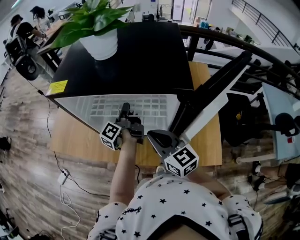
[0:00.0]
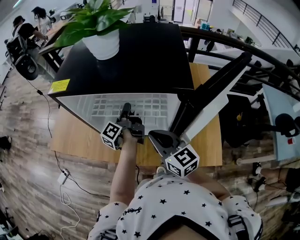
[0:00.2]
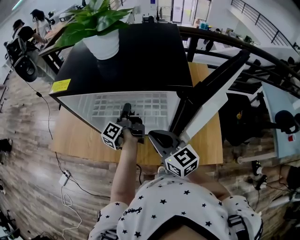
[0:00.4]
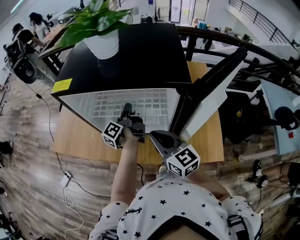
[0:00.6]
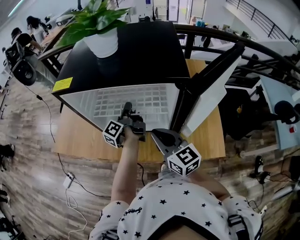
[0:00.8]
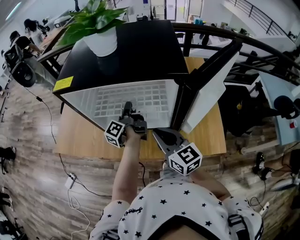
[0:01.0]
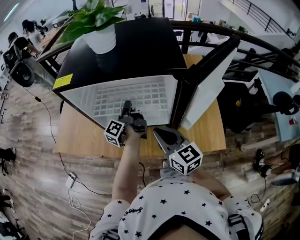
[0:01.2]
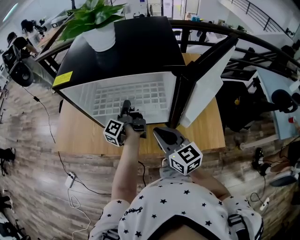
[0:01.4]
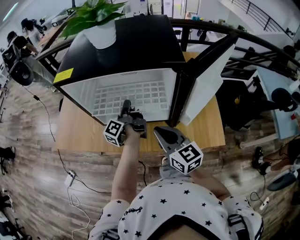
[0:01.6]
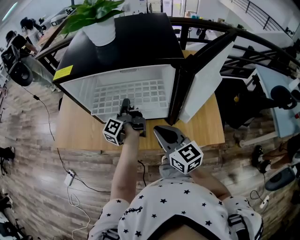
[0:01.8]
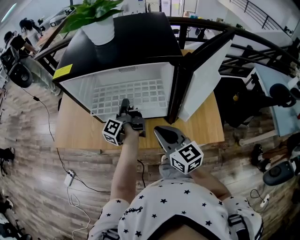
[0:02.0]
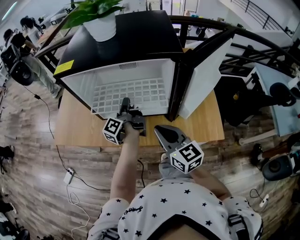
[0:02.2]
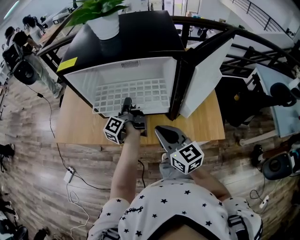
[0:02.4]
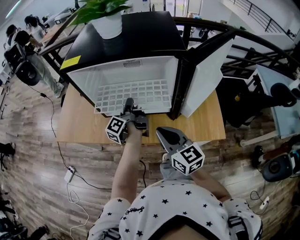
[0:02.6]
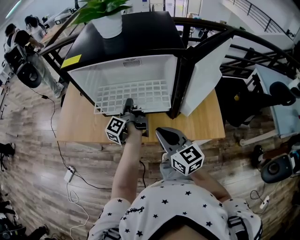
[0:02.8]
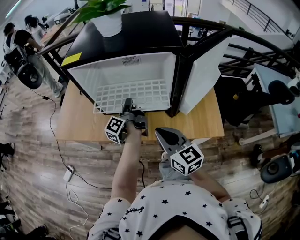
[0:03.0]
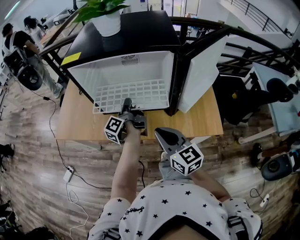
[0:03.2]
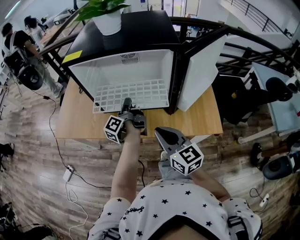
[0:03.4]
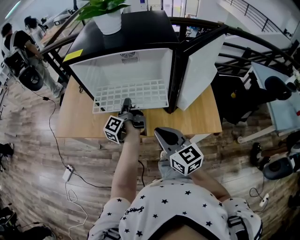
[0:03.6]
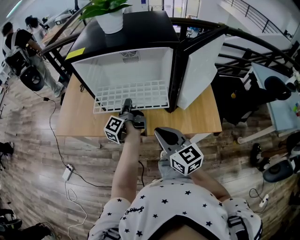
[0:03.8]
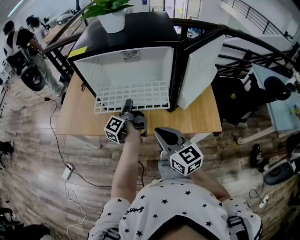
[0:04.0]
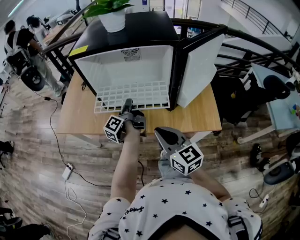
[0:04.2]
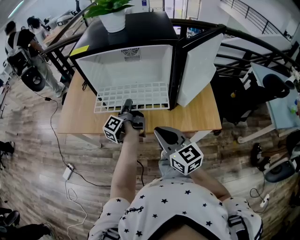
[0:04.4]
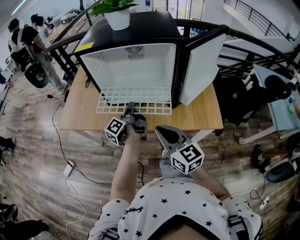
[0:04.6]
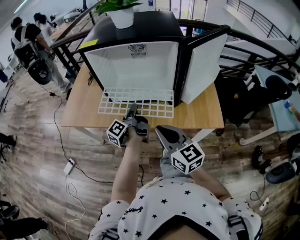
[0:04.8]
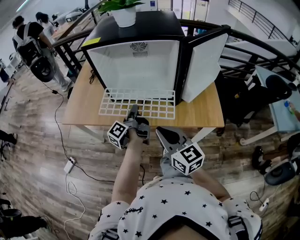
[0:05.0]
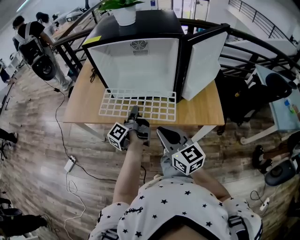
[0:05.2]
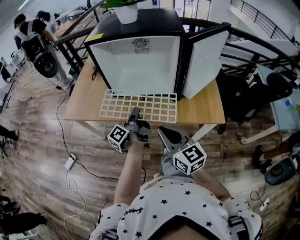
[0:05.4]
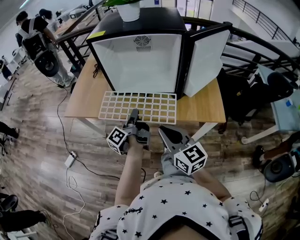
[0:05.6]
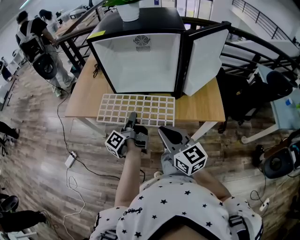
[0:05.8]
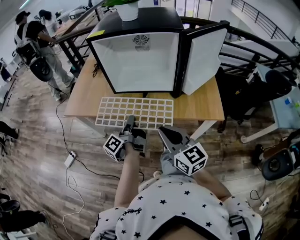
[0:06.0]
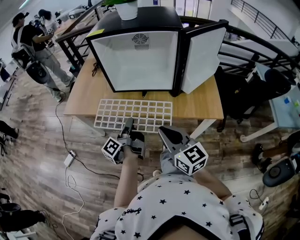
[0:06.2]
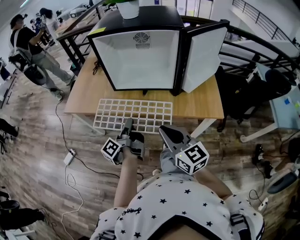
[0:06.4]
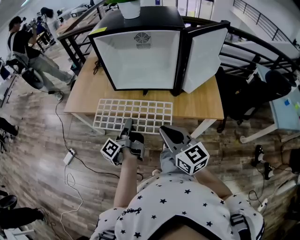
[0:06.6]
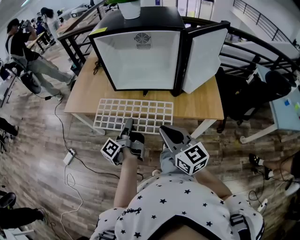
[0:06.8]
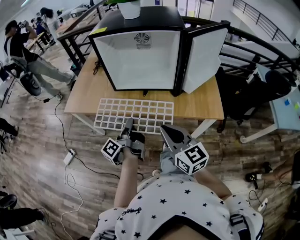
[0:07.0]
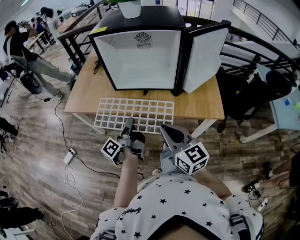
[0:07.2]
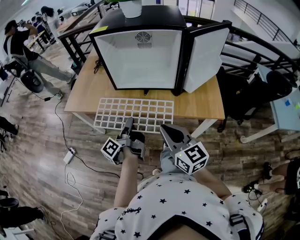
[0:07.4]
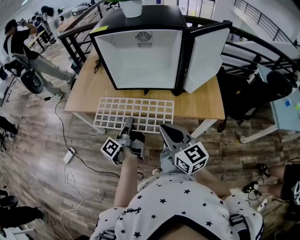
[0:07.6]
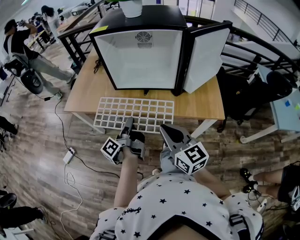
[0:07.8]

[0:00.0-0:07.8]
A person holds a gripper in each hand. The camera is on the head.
0:00.0 to 0:01.6: The left gripper changes place by approximately 5 cm, while the right gripper shifts roughly 5 cm backward.
0:01.6 to 0:03.2: Both grippers travel together backward, some 5 cm.
0:03.2 to 0:04.6: The right gripper moves about 5 cm. Meanwhile the left gripper goes some 5 cm backward.
0:04.6 to 0:06.2: The left gripper heads backward and to the left, covering some 15 cm; the right gripper heads backward, covering approximately 10 cm.
0:06.2 to 0:07.8: Both grippers stay put.

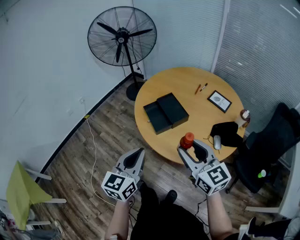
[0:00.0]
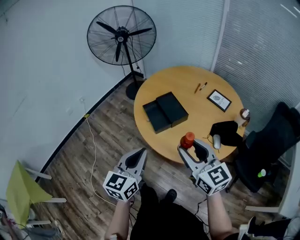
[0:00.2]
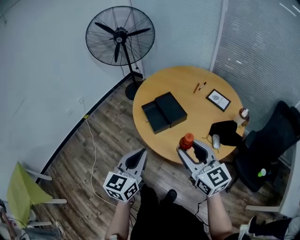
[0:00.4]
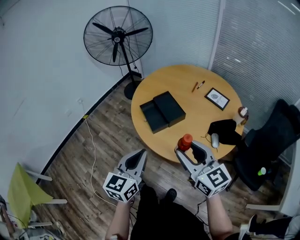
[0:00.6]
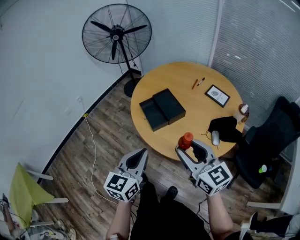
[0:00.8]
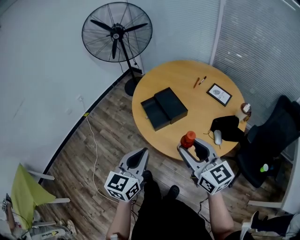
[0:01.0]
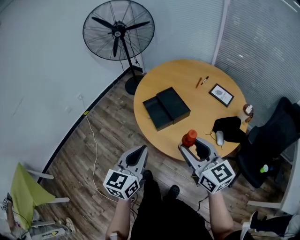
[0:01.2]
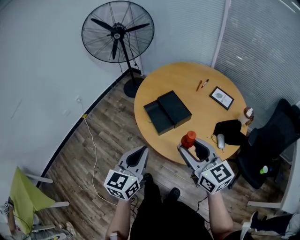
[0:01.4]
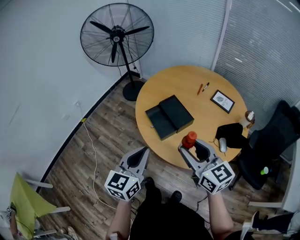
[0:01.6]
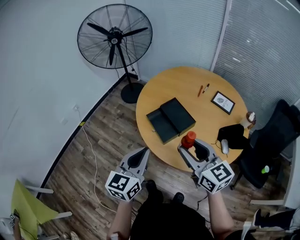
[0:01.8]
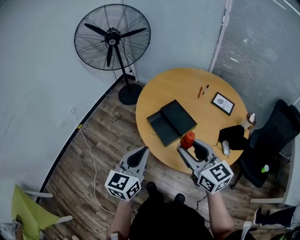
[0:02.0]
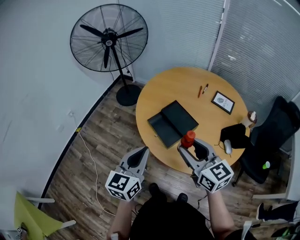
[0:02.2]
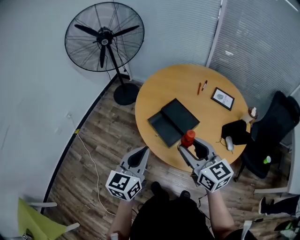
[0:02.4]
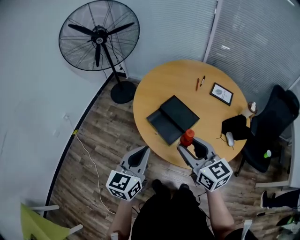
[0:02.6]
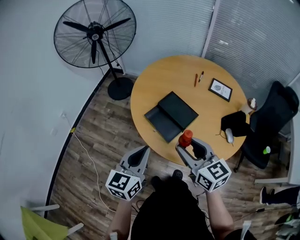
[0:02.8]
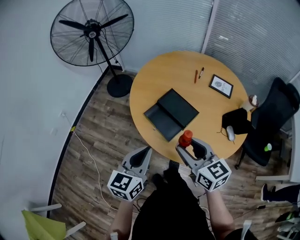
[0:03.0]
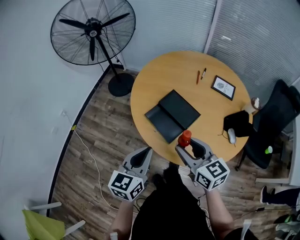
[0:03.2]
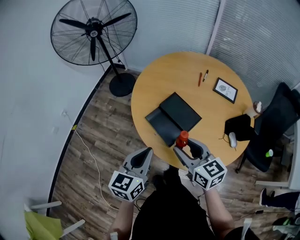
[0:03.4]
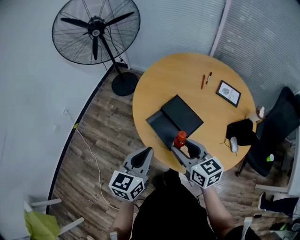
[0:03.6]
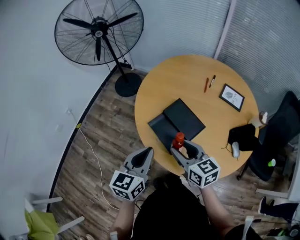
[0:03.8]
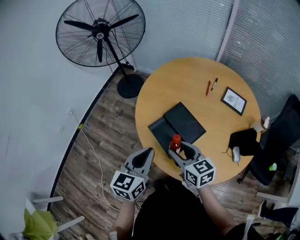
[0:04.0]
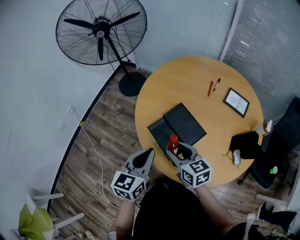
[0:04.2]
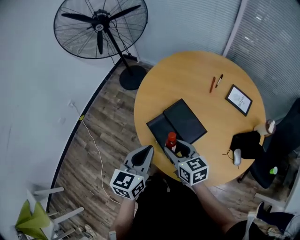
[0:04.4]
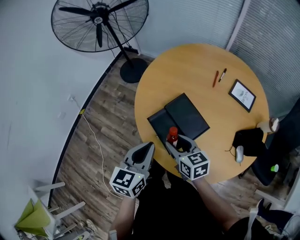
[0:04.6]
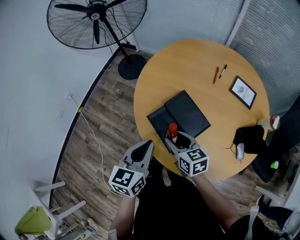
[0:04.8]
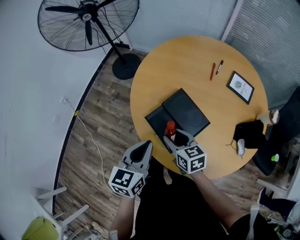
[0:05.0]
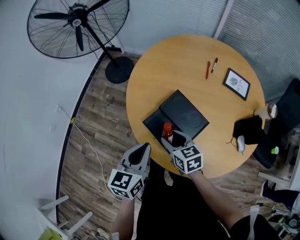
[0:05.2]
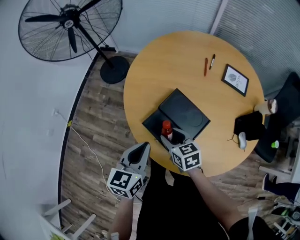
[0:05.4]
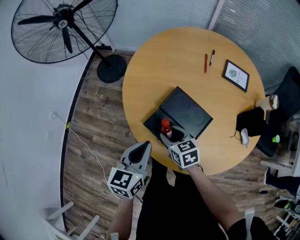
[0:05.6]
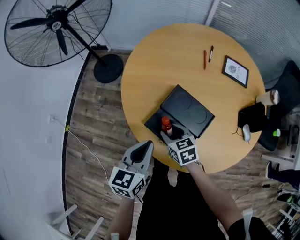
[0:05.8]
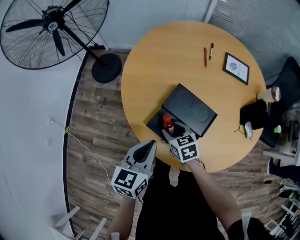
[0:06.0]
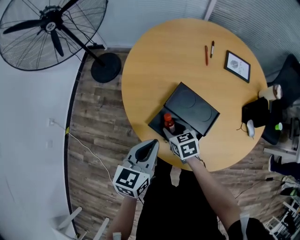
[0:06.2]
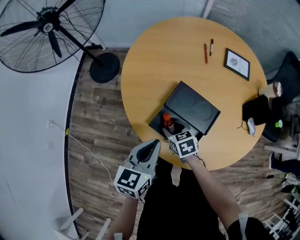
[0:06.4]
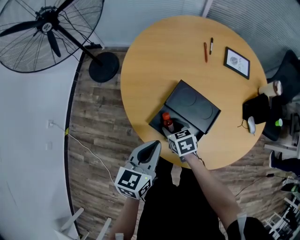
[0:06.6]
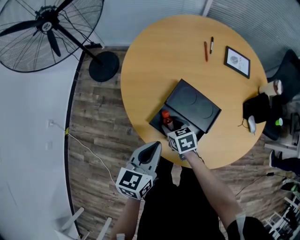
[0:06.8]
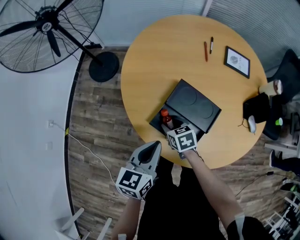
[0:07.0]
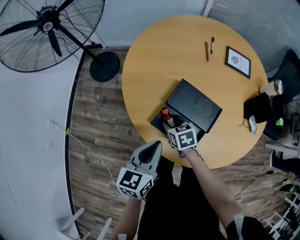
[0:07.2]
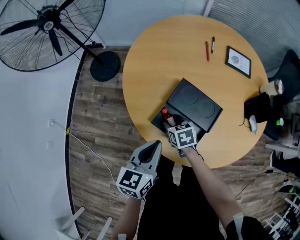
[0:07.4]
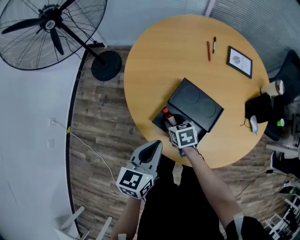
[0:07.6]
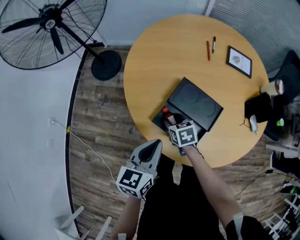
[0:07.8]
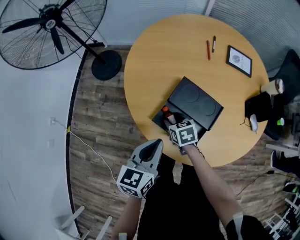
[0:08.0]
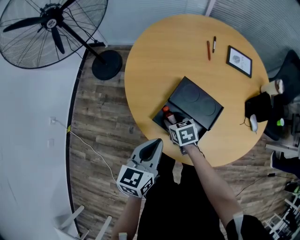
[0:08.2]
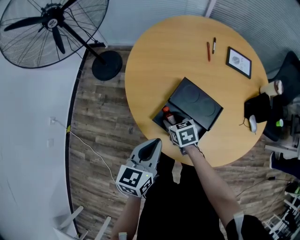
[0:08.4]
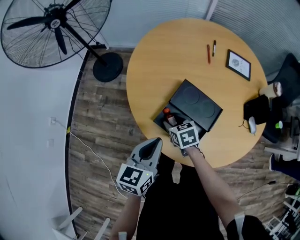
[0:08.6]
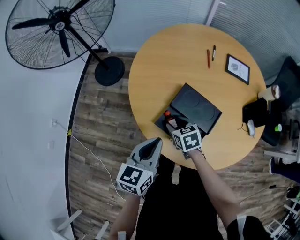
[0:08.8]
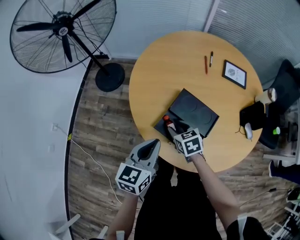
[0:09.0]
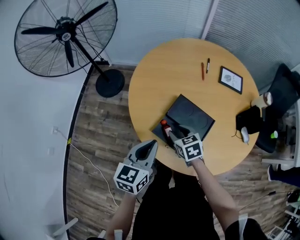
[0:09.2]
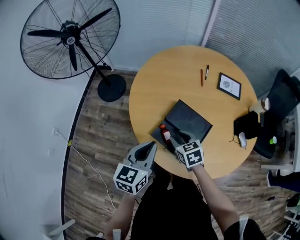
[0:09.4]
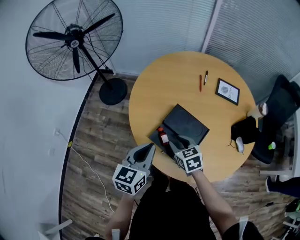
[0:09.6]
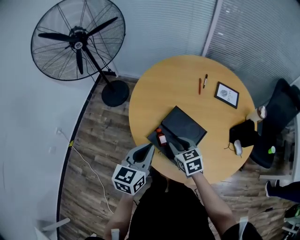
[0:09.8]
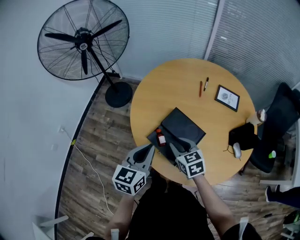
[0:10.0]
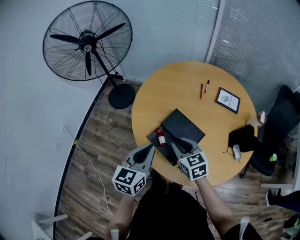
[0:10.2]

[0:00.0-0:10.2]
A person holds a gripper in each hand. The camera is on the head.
0:00.0 to 0:01.4: The grippers stay close to where they were, moving slightly.
0:01.4 to 0:03.0: The left gripper heads forward and to the left, covering some 15 cm, while the right gripper goes roughly 15 cm forward, to the left and downward.
0:03.0 to 0:04.4: The left gripper goes approximately 10 cm forward. Meanwhile the right gripper moves forward and downward, approximately 20 cm.
0:04.4 to 0:05.8: The right gripper moves downward and forward, about 15 cm, and swivels about 20 degrees. The left gripper heads downward and forward, covering some 10 cm.
0:05.8 to 0:07.2: The right gripper is displaced downward by about 5 cm.
0:07.2 to 0:08.8: There are only small adjustments of the grippers.
0:08.8 to 0:10.2: The right gripper is displaced upward and to the right by about 20 cm, changes its angle by approximately 20 degrees, and closes, while the left gripper goes some 10 cm upward.

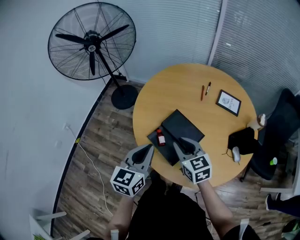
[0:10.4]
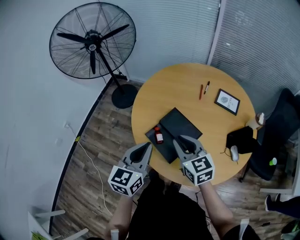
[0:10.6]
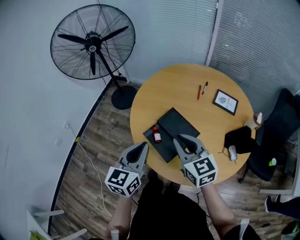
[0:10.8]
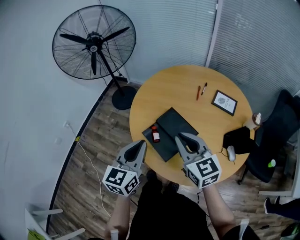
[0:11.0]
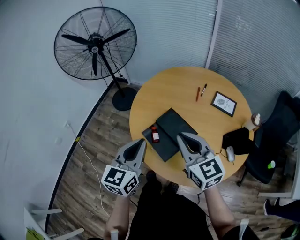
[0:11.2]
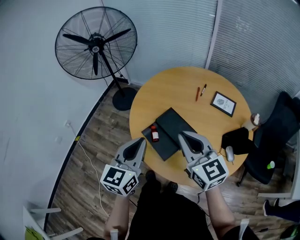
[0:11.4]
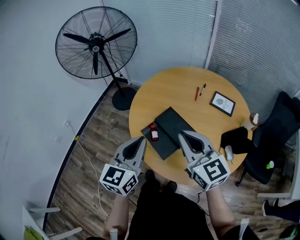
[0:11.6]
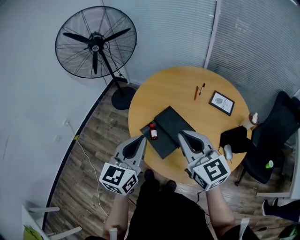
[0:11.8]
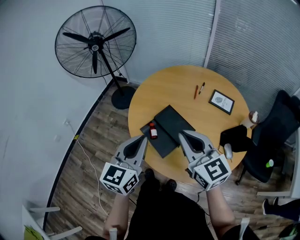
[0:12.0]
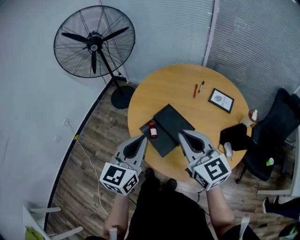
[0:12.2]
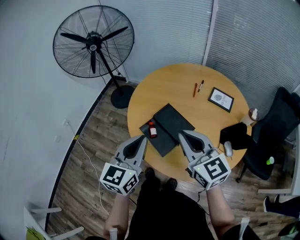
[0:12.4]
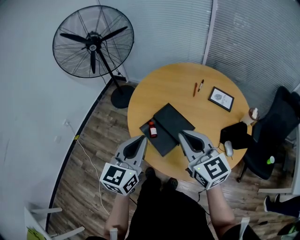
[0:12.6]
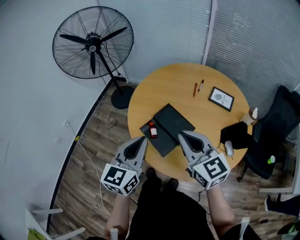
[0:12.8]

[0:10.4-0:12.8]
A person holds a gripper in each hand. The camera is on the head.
0:10.4 to 0:11.6: The left gripper travels upward by roughly 5 cm. Meanwhile the right gripper travels upward and backward by some 15 cm, and changes its angle by some 20 degrees.
0:11.6 to 0:12.8: The grippers move only a little.

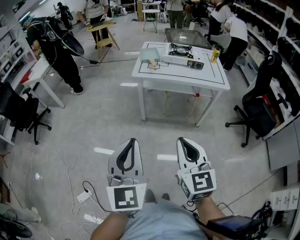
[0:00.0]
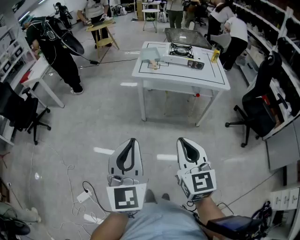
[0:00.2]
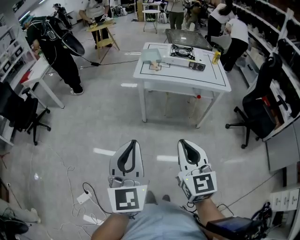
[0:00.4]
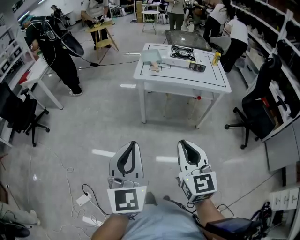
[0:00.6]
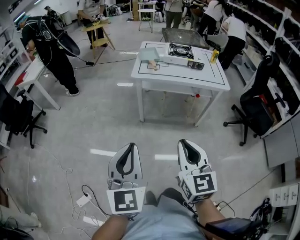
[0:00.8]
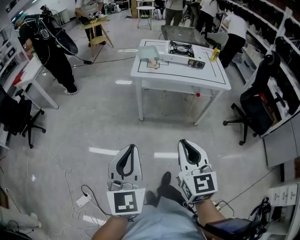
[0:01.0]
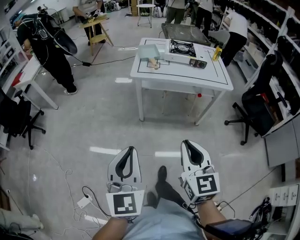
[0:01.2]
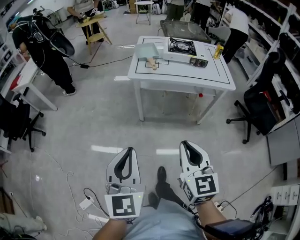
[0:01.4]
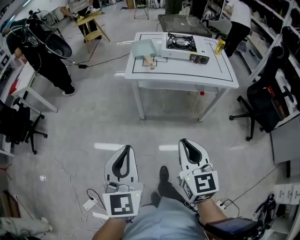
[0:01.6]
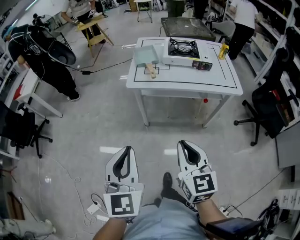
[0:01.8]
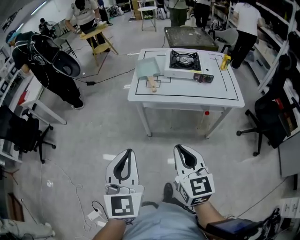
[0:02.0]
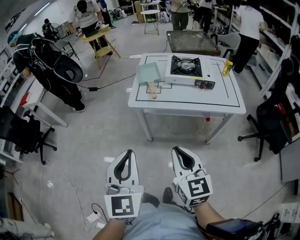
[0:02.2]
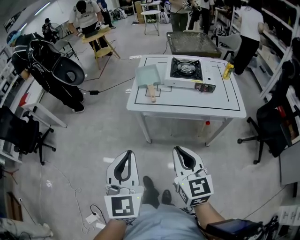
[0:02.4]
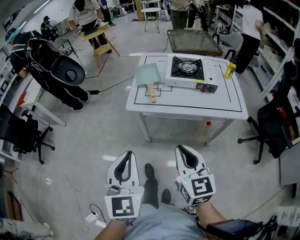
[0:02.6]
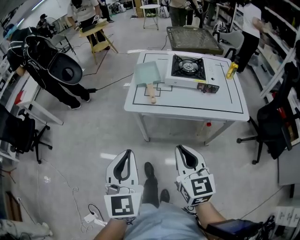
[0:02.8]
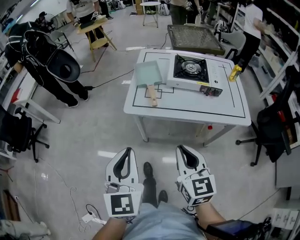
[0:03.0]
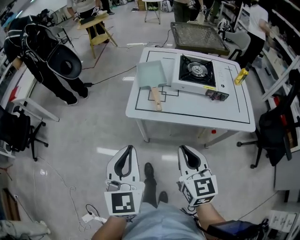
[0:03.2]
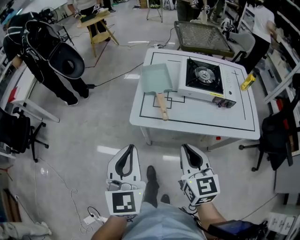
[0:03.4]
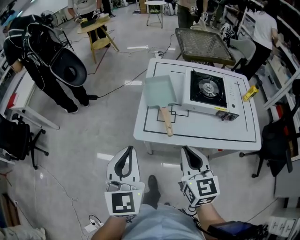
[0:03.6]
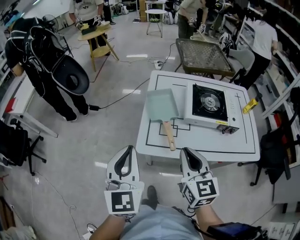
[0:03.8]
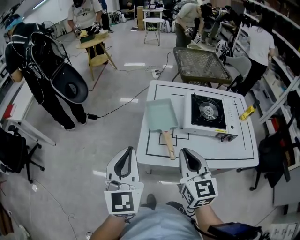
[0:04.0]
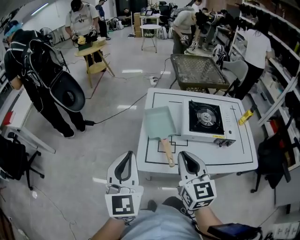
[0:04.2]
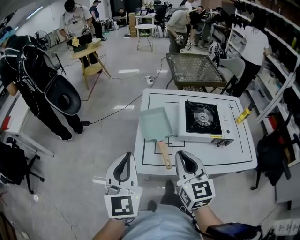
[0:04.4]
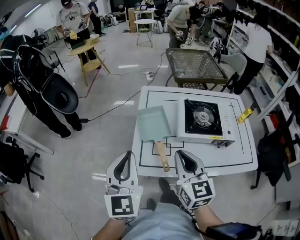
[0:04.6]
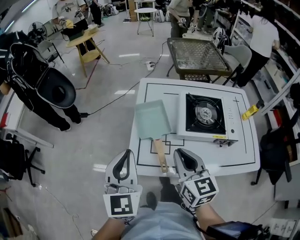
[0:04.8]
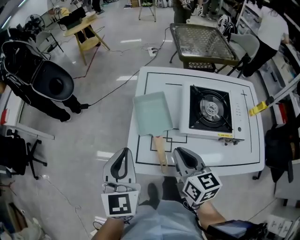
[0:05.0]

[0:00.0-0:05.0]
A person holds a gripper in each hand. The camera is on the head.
0:00.0 to 0:01.6: Both grippers move forward, about 15 cm.
0:01.6 to 0:03.4: The two grippers go roughly 35 cm forward.
0:03.4 to 0:05.0: Both grippers move forward, about 25 cm.
